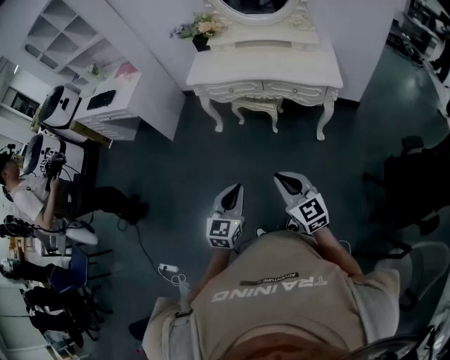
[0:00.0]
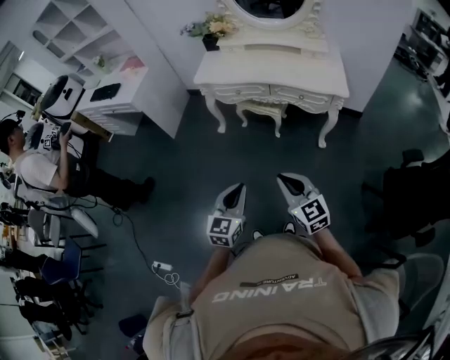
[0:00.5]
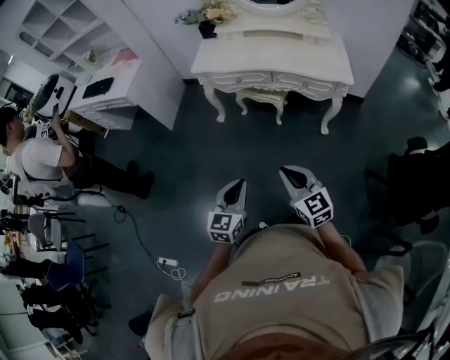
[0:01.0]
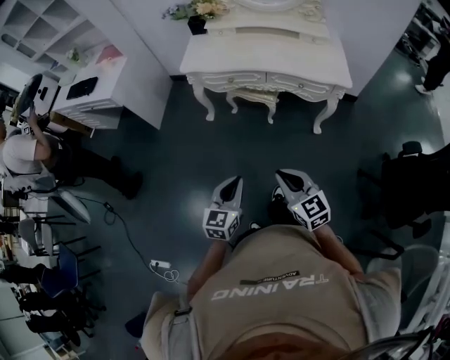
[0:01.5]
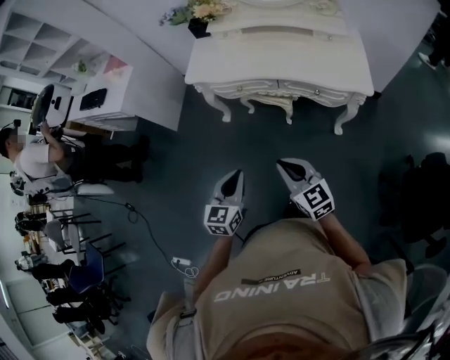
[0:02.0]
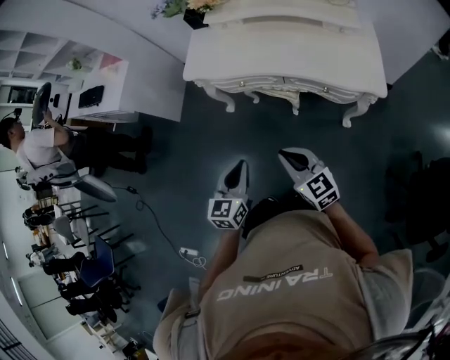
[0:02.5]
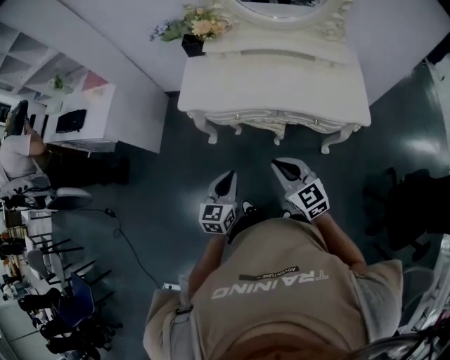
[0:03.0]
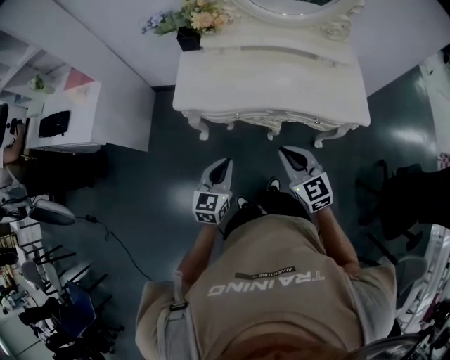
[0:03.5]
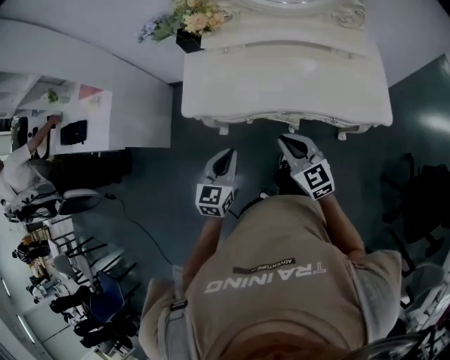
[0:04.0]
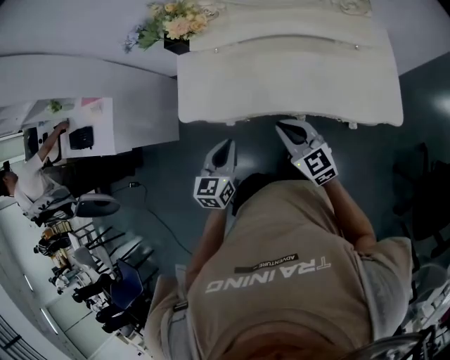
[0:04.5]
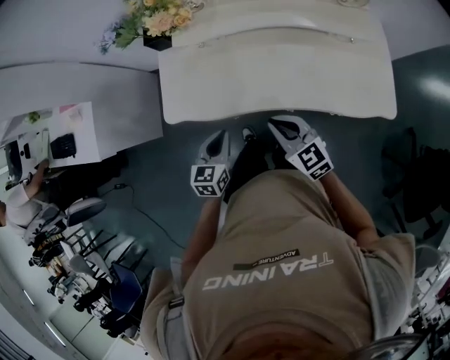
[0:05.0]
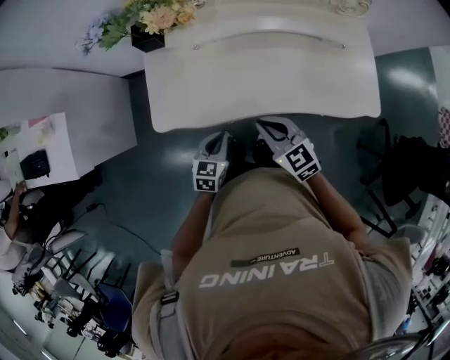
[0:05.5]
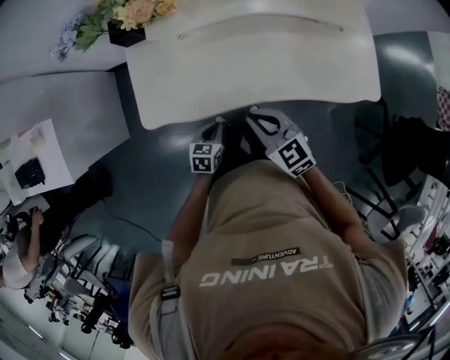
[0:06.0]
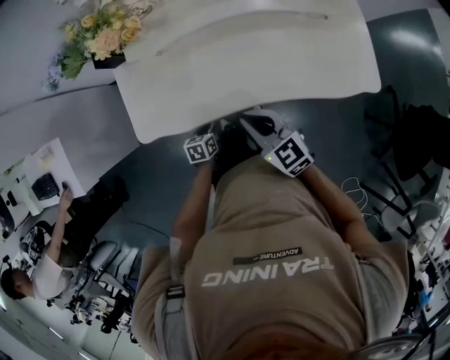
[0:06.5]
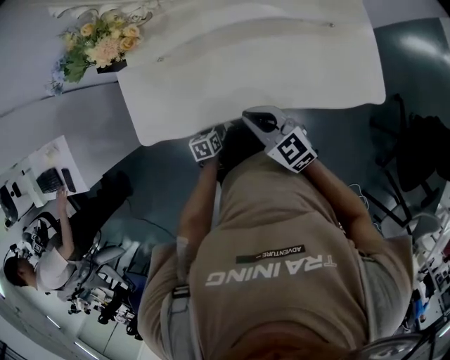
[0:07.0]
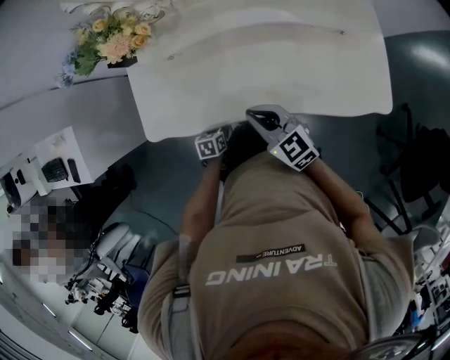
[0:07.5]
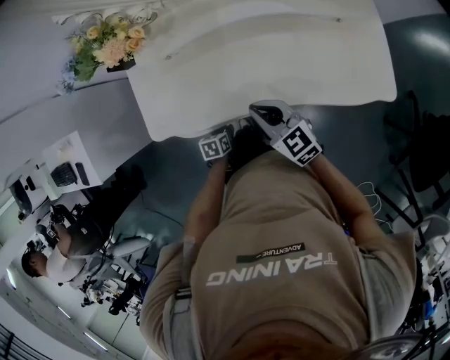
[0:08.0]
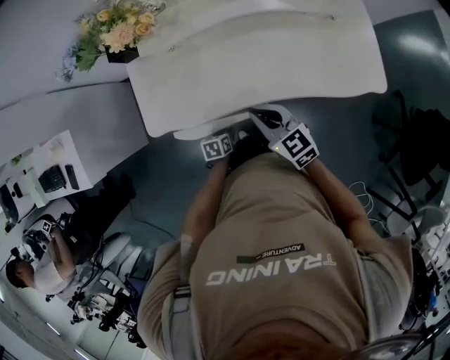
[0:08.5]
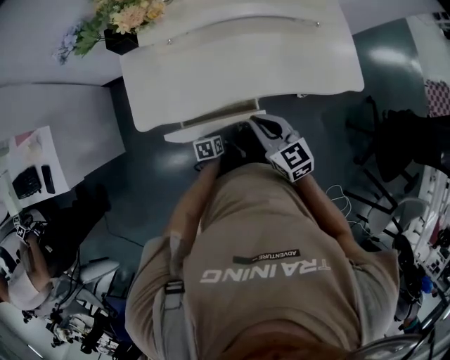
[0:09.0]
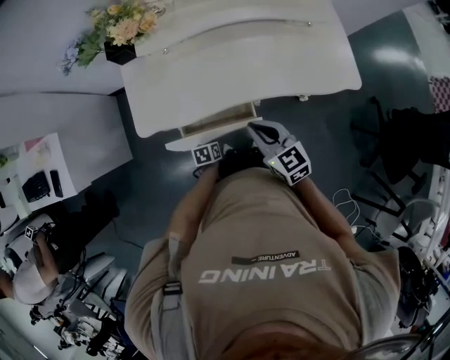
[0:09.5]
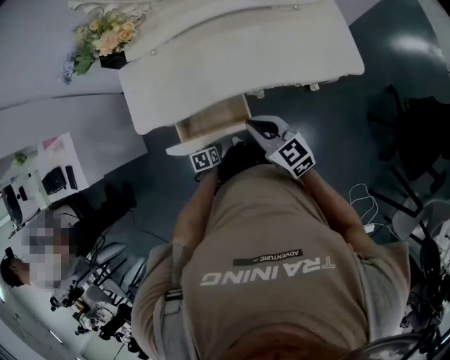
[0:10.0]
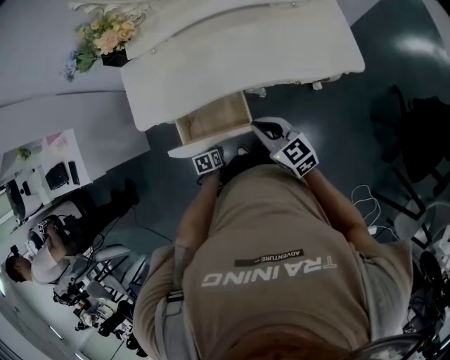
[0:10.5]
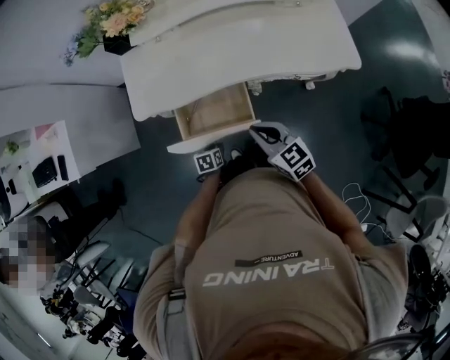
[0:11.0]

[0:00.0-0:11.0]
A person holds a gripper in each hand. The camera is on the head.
0:00.0 to 0:02.0: The grippers both shift forward by roughly 30 cm.
0:02.0 to 0:03.5: The two grippers go about 25 cm forward.
0:03.5 to 0:05.5: The right gripper shifts roughly 25 cm forward. The left gripper moves forward and downward, approximately 30 cm, and turns by some 20 degrees.
0:05.5 to 0:07.5: The right gripper travels to the right and forward by roughly 10 cm. Meanwhile the left gripper shifts about 20 cm downward, turns by roughly 30 degrees, and opens up.
0:07.5 to 0:09.0: The grippers both shift backward by approximately 10 cm.
0:09.0 to 0:11.0: The right gripper goes roughly 15 cm backward and to the right. The left gripper shifts roughly 15 cm backward.

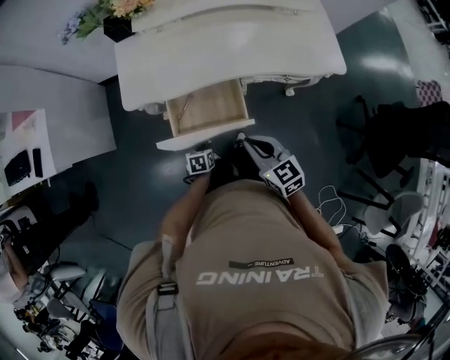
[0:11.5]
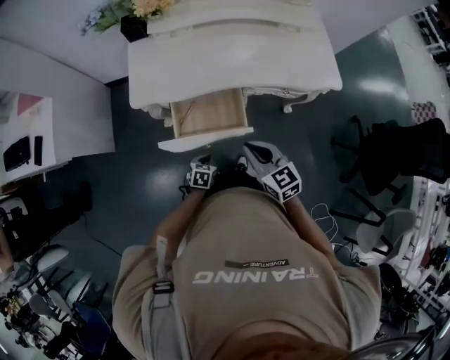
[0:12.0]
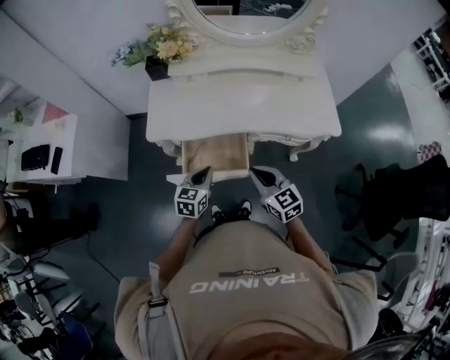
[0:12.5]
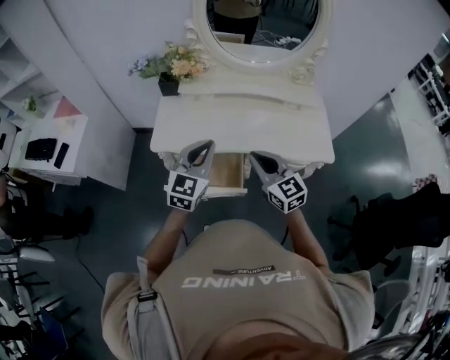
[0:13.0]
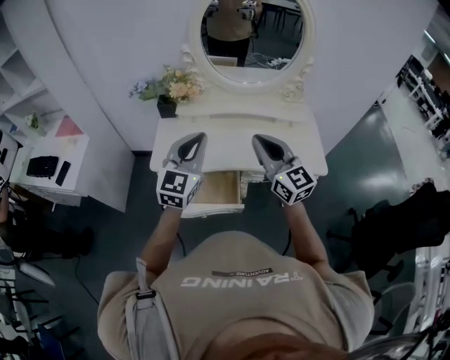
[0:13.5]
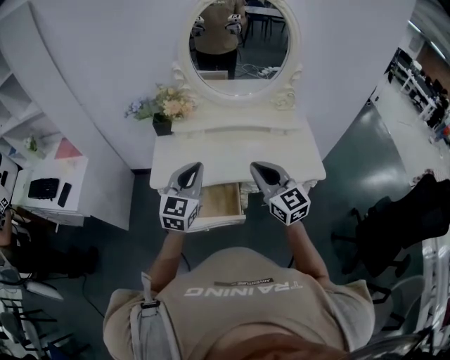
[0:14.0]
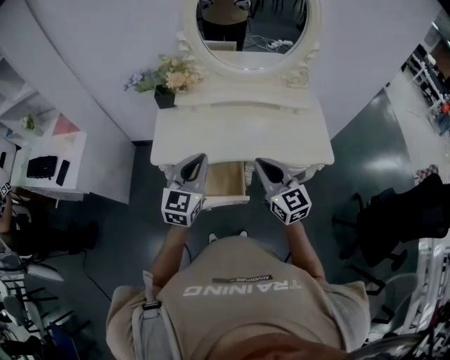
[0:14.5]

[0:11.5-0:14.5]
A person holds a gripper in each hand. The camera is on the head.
0:11.5 to 0:13.0: The left gripper moves upward, roughly 50 cm, and tips its fingers upward by some 50 degrees; the right gripper heads upward, covering roughly 20 cm, and turns by about 20 degrees.
0:13.0 to 0:14.5: The left gripper moves about 10 cm upward and comes back, while the right gripper moves about 15 cm upward and comes back.

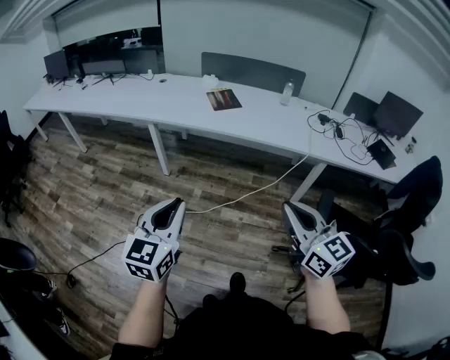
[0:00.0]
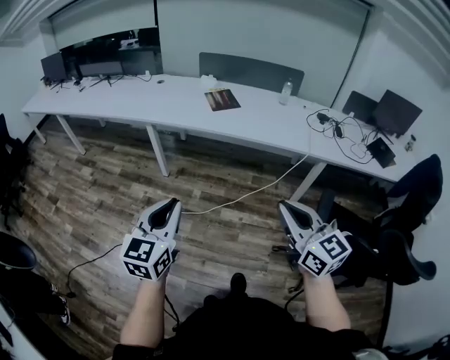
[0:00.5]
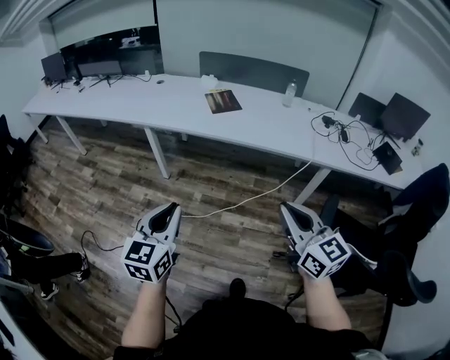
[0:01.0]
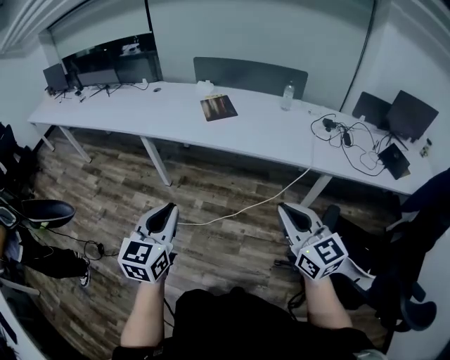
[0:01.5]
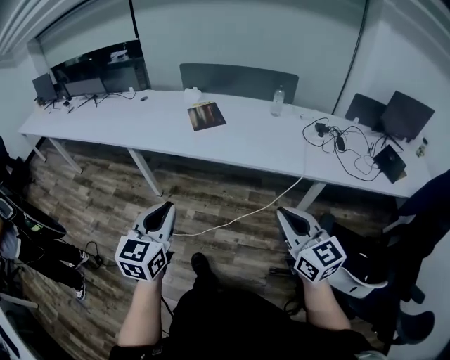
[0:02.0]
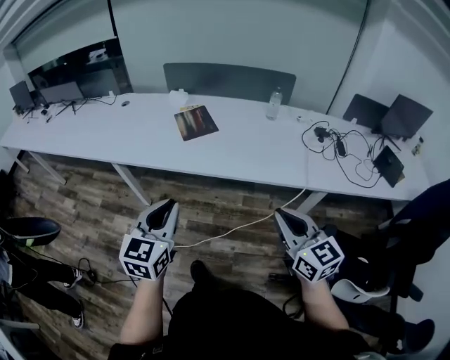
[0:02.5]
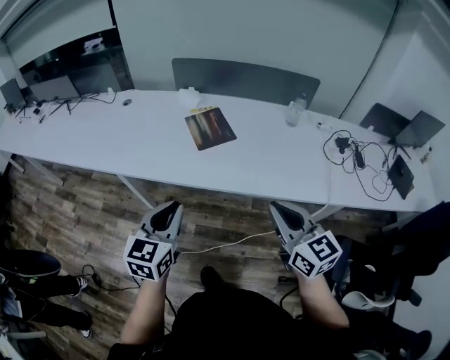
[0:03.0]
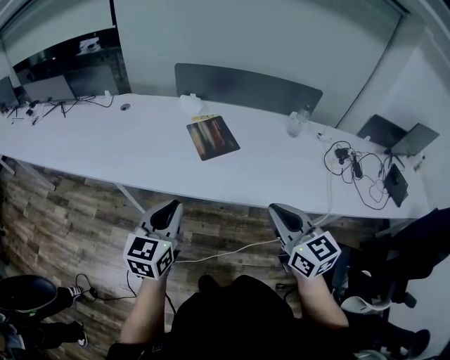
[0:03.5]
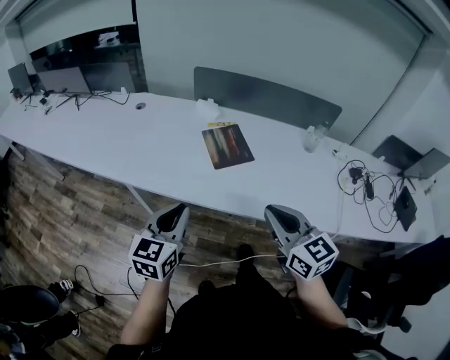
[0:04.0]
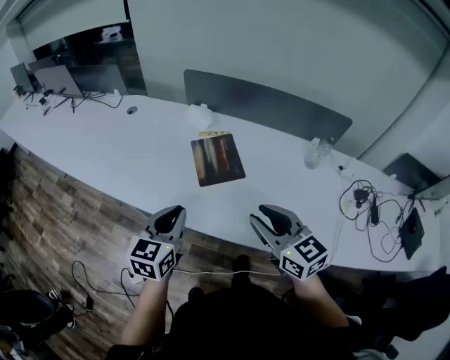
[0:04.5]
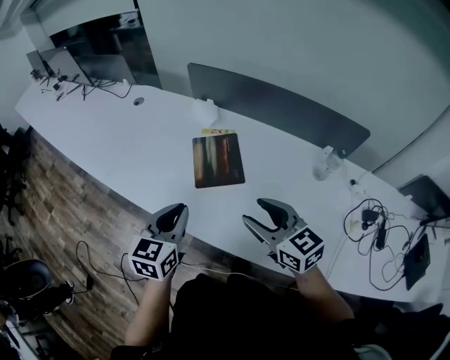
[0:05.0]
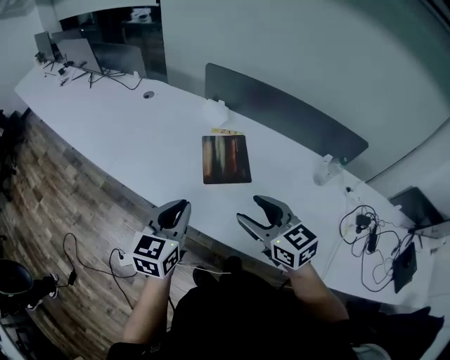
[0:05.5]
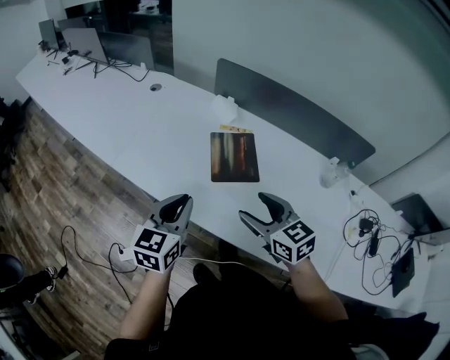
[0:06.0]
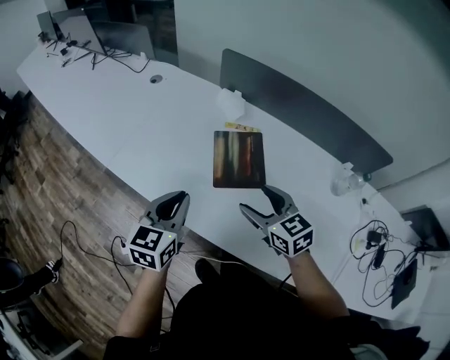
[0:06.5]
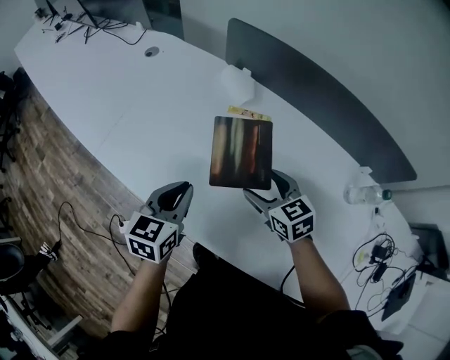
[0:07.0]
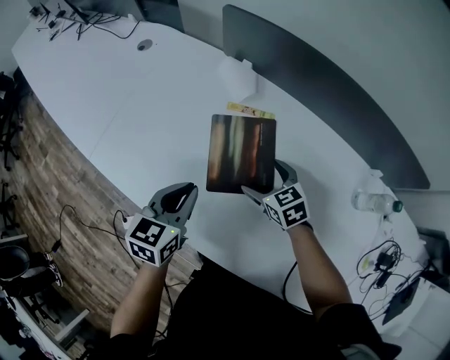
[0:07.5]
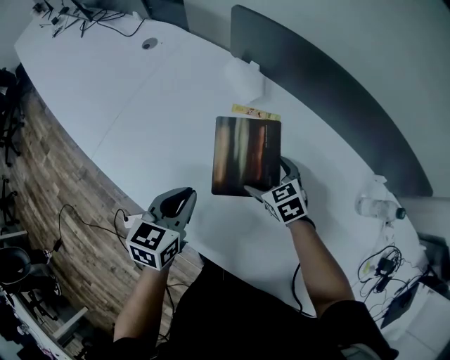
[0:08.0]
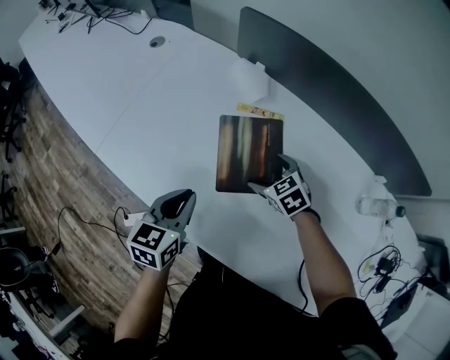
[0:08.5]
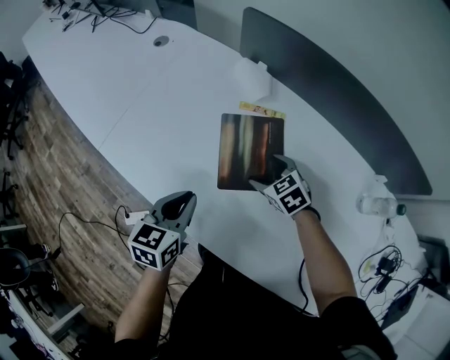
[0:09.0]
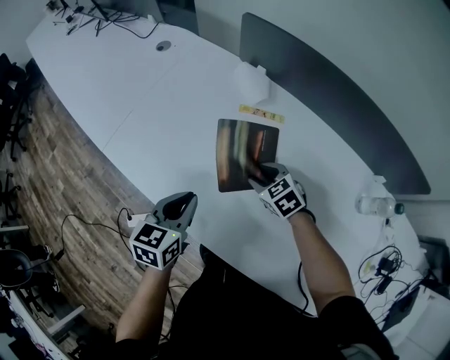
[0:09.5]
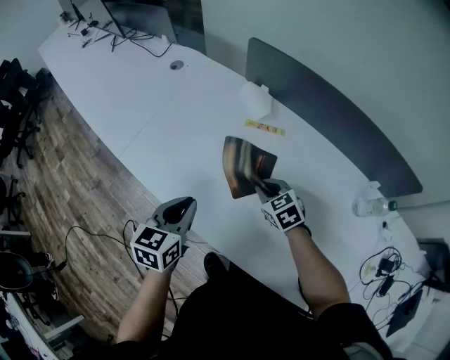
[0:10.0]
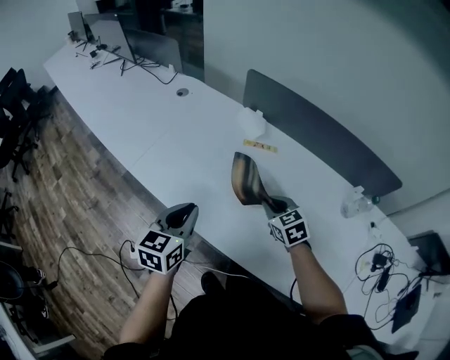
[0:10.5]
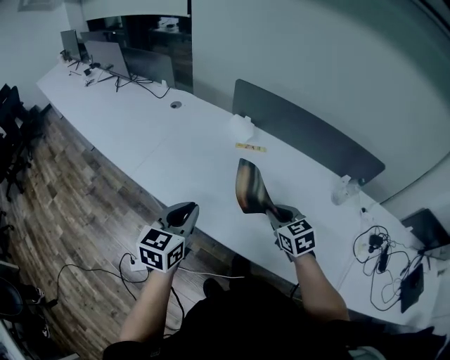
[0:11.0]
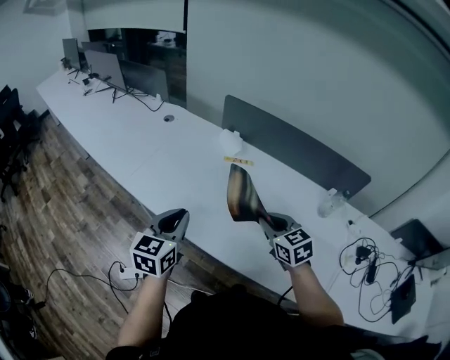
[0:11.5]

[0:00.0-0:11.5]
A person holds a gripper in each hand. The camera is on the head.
0:00.0 to 0:02.0: The grippers both shift forward and to the right by some 20 cm.
0:02.0 to 0:04.0: The left gripper goes about 35 cm forward, while the right gripper heads forward and to the left, covering approximately 40 cm.
0:04.0 to 0:06.0: The right gripper is displaced forward and downward by some 20 cm, turns by roughly 30 degrees, and opens up, while the left gripper travels forward and to the right by about 15 cm.
0:06.0 to 0:07.5: The right gripper travels downward and forward by about 30 cm; the left gripper moves forward, downward and to the right, some 20 cm.
0:07.5 to 0:09.5: The right gripper closes up, while the left gripper ends up approximately 5 cm from where it was.
0:09.5 to 0:11.5: The left gripper shifts about 20 cm upward and backward, while the right gripper is displaced upward and backward by about 30 cm, and rotates some 30 degrees.

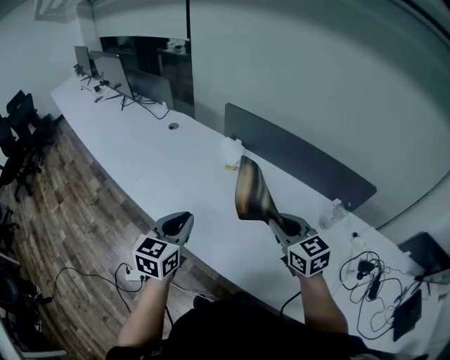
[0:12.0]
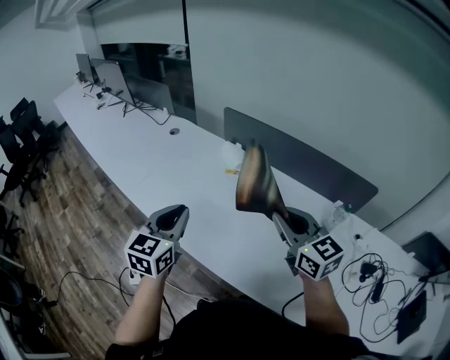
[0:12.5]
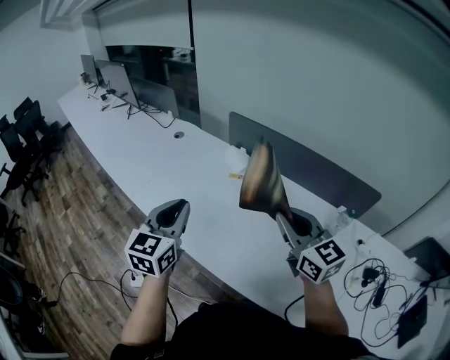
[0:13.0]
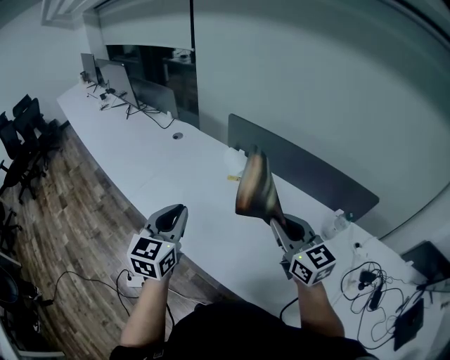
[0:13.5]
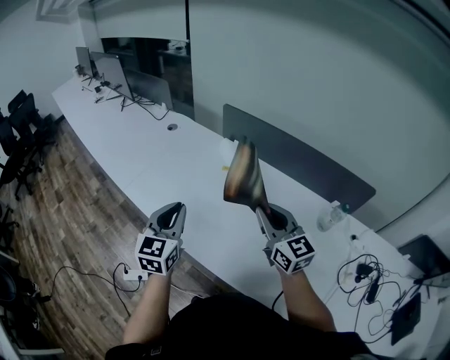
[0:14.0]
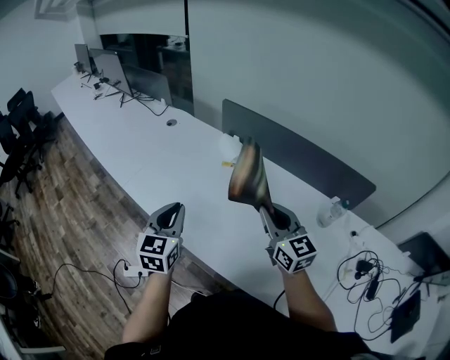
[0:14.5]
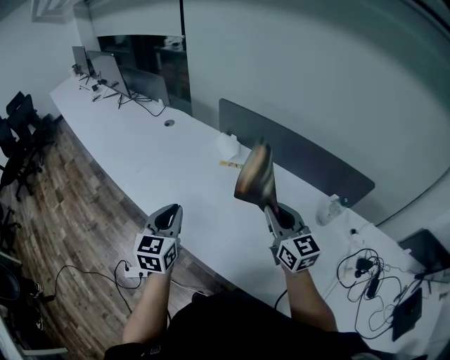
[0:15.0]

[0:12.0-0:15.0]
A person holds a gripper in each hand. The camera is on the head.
0:12.0 to 0:13.5: Both grippers move upward, approximately 5 cm.
0:13.5 to 0:15.0: The grippers both shift downward by about 5 cm.
